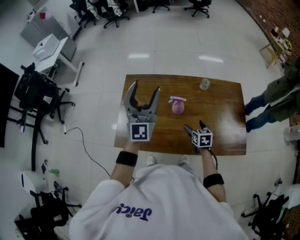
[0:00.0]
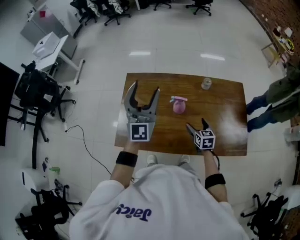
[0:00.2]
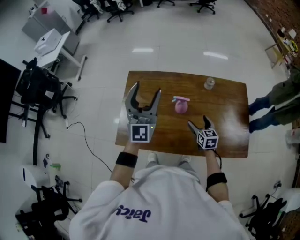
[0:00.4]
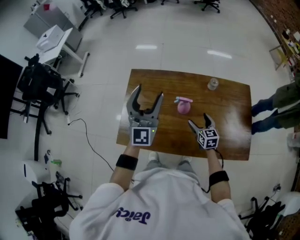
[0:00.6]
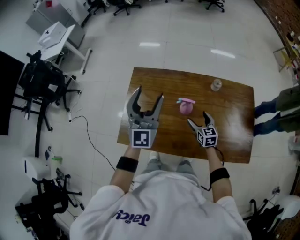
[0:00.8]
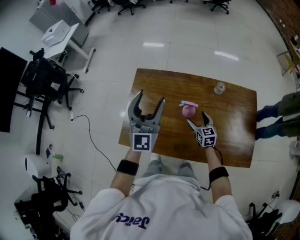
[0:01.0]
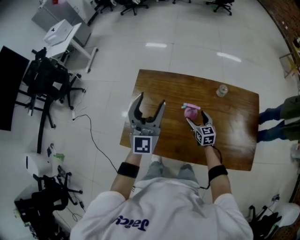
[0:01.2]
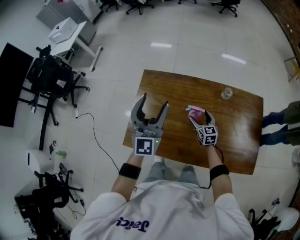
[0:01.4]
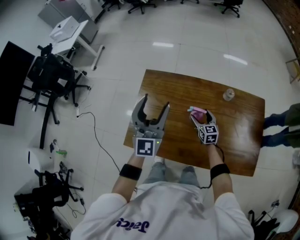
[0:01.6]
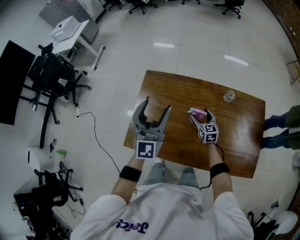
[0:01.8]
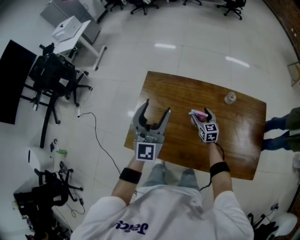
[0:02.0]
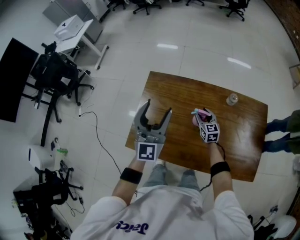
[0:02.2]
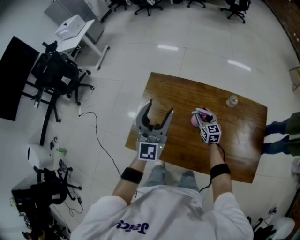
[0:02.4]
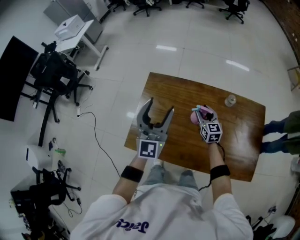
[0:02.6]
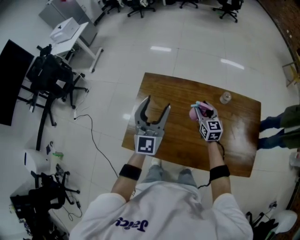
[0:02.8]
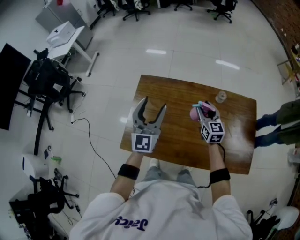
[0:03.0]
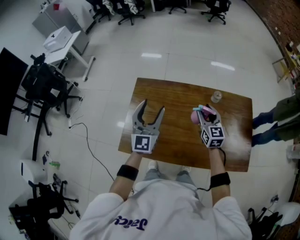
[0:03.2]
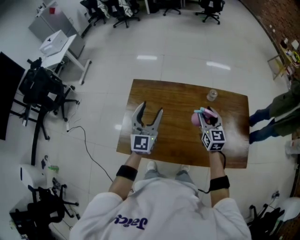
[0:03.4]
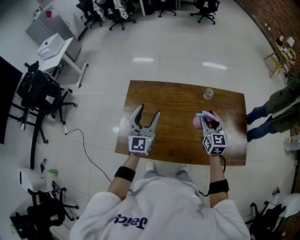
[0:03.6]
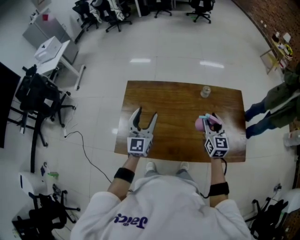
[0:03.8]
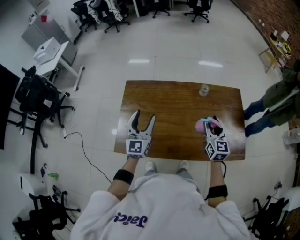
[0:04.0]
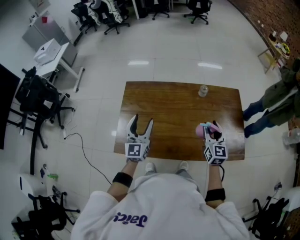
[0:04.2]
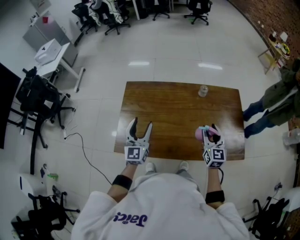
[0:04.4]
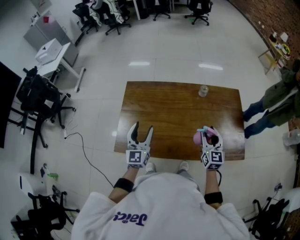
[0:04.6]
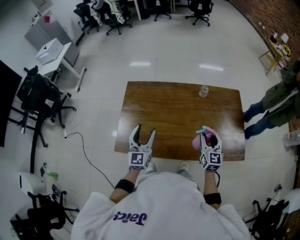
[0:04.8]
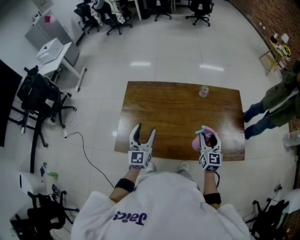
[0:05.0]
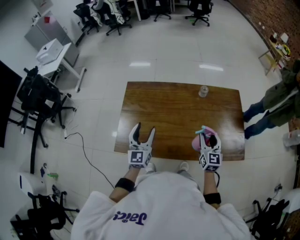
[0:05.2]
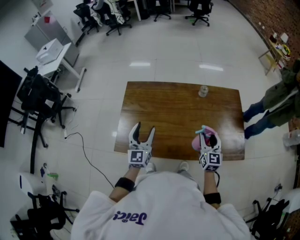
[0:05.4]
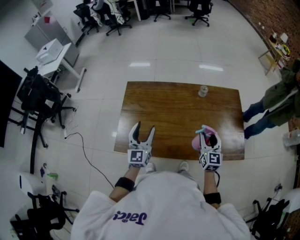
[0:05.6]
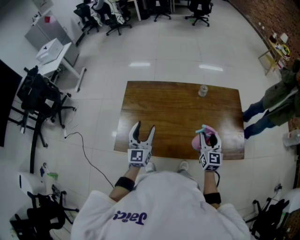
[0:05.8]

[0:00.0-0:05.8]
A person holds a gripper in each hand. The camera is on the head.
0:00.0 to 0:01.4: Both grippers travel together downward, some 20 cm. The right gripper rotates about 20 degrees.
0:01.4 to 0:02.8: The right gripper heads upward, covering some 10 cm, and closes.
0:02.8 to 0:04.4: The left gripper goes about 15 cm backward and downward. The right gripper travels backward and to the right by approximately 25 cm, and swivels about 20 degrees.
0:04.4 to 0:05.8: There are only small adjustments of the grippers.

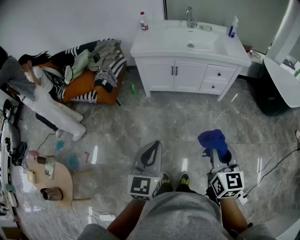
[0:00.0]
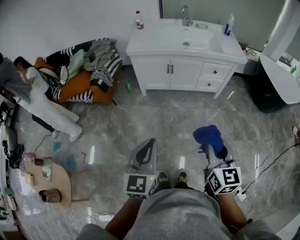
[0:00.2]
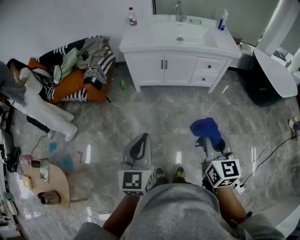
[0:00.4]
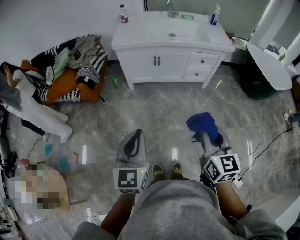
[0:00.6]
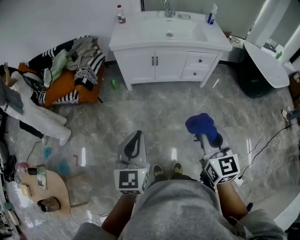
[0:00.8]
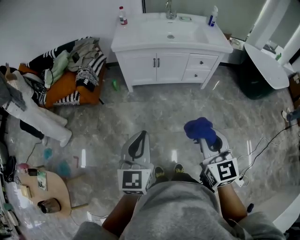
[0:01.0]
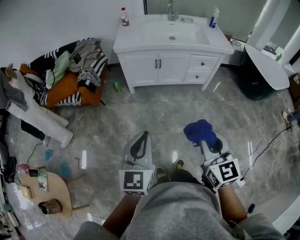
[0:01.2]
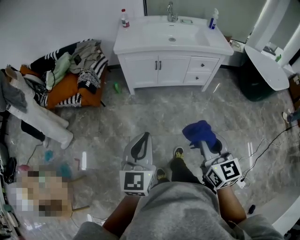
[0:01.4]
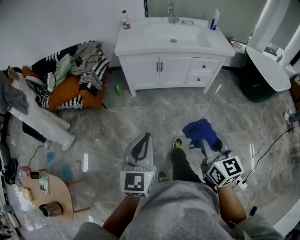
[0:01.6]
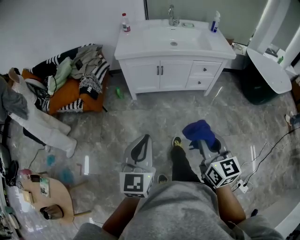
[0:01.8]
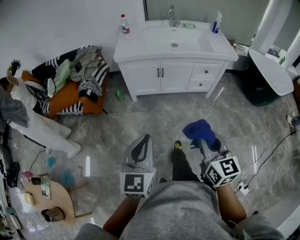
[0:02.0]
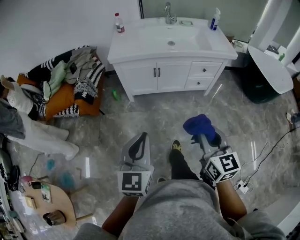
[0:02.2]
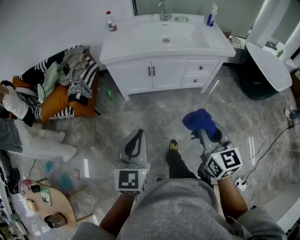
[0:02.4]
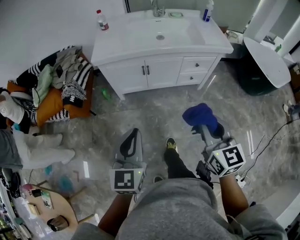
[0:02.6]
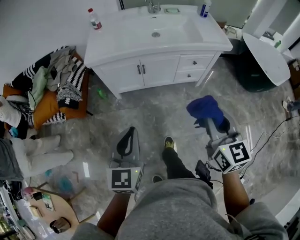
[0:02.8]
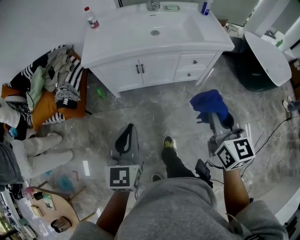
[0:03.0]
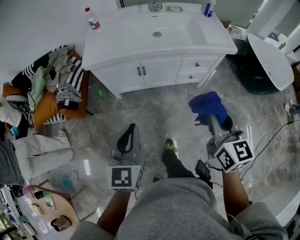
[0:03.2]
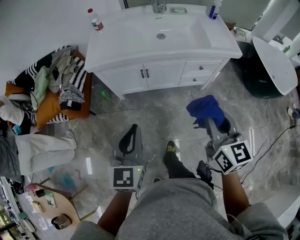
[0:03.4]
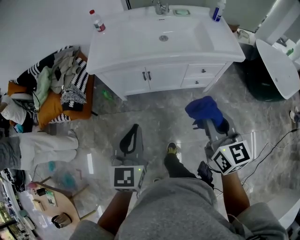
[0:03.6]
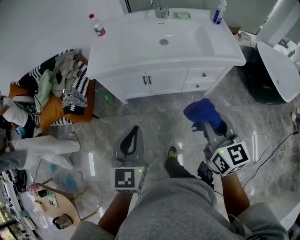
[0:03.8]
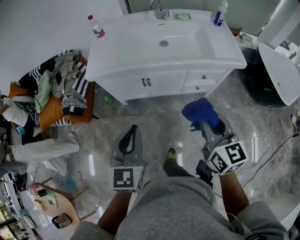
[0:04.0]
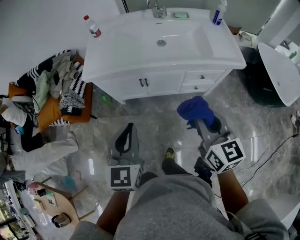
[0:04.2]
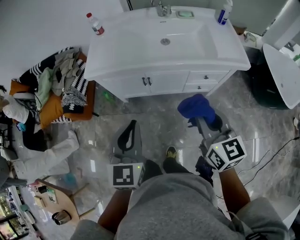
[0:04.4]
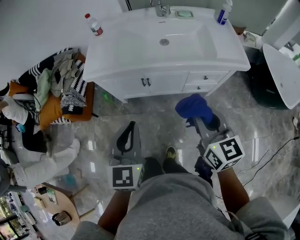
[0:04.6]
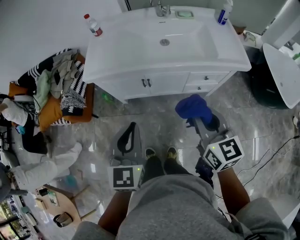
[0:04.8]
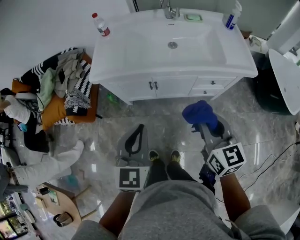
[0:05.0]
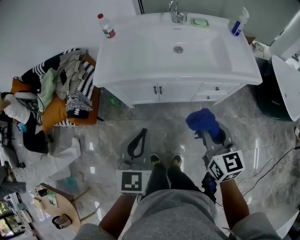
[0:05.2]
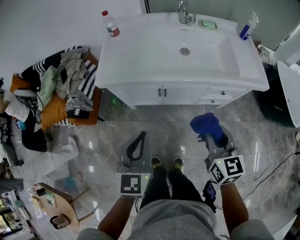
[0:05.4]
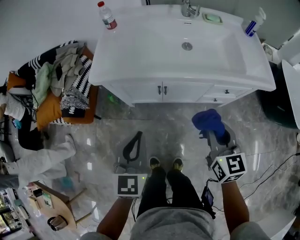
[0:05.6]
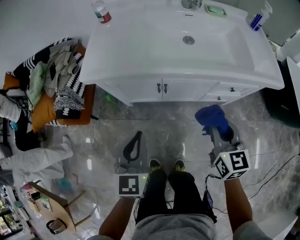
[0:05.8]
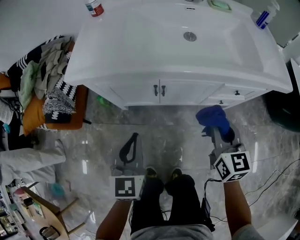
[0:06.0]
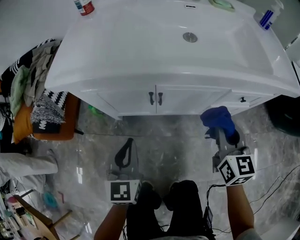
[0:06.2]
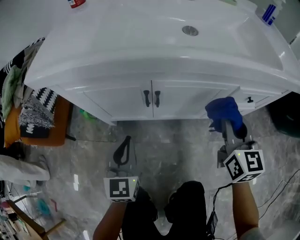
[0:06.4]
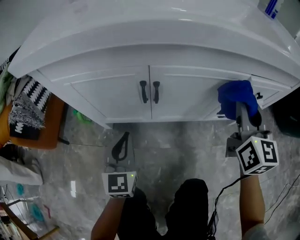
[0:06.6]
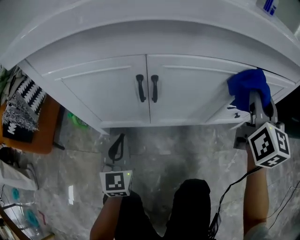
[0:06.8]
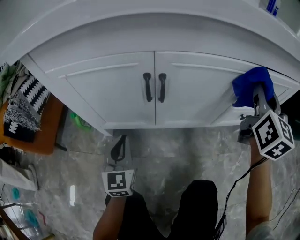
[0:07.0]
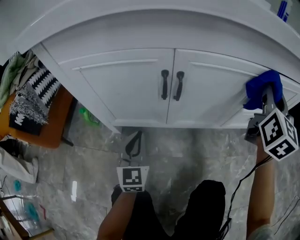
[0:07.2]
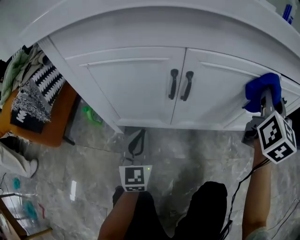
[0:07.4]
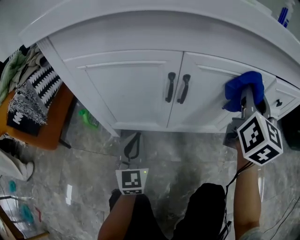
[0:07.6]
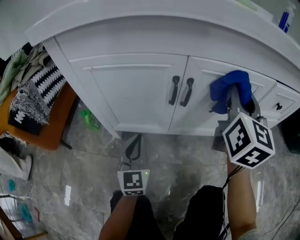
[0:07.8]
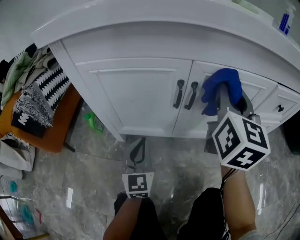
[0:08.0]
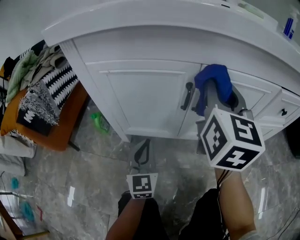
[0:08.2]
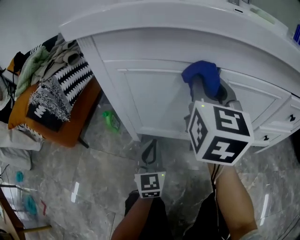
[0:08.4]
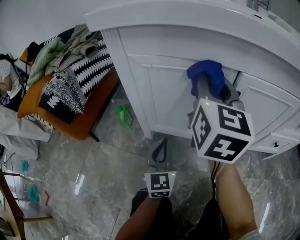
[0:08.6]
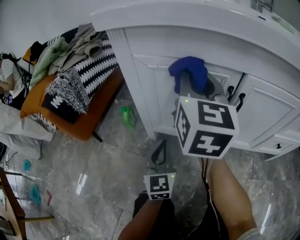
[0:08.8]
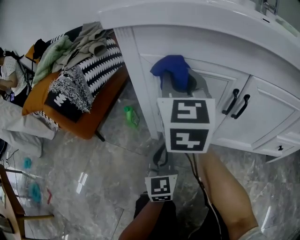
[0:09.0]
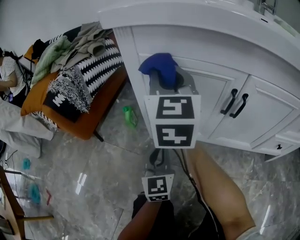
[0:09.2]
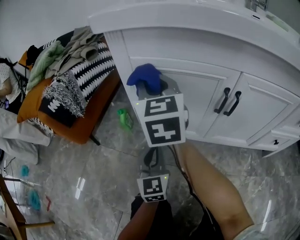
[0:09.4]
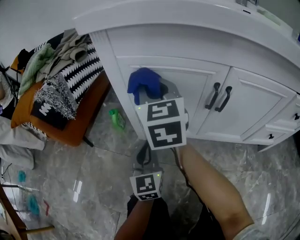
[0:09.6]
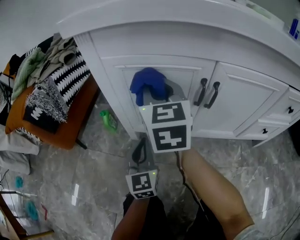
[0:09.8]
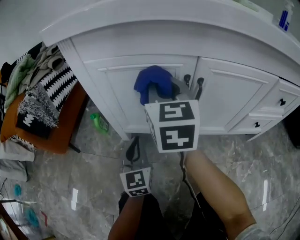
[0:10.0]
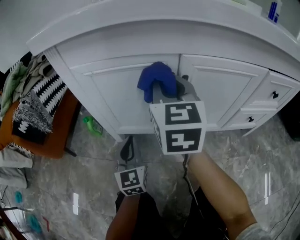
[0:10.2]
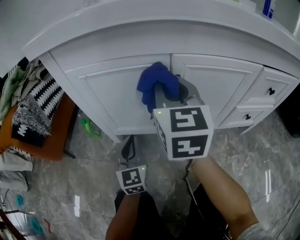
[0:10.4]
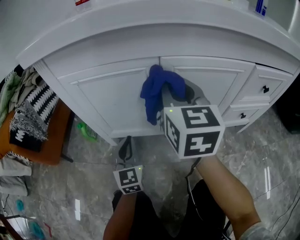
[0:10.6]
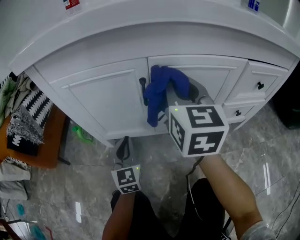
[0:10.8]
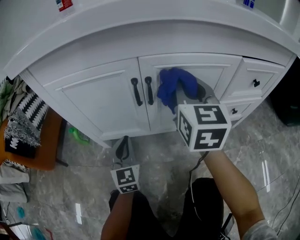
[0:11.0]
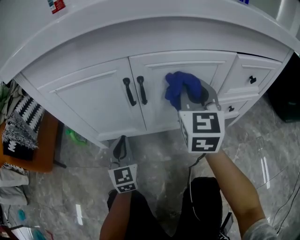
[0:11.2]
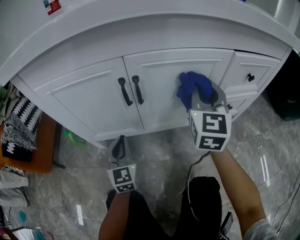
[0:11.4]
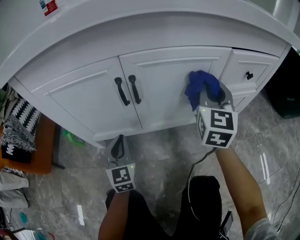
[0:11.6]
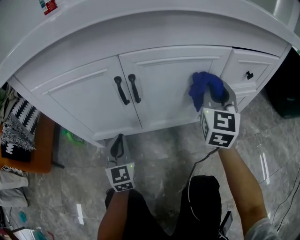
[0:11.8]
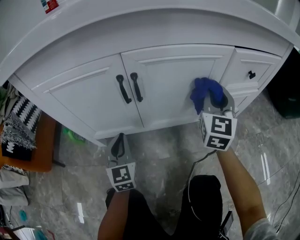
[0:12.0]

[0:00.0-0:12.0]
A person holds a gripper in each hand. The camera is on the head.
0:00.0 to 0:01.6: The right gripper is displaced to the left by roughly 5 cm.
0:01.6 to 0:03.0: The right gripper goes approximately 30 cm forward and to the right; the left gripper is displaced forward by roughly 25 cm.
0:03.0 to 0:04.4: The right gripper heads forward, covering some 15 cm. Meanwhile the left gripper moves forward and to the right, about 15 cm.
0:04.4 to 0:06.0: The two grippers go roughly 30 cm downward and forward.
0:06.0 to 0:07.6: The left gripper goes approximately 35 cm downward, while the right gripper moves forward and downward, roughly 20 cm, and turns by approximately 30 degrees.
0:07.6 to 0:09.0: The left gripper shifts roughly 10 cm to the left. The right gripper shifts some 40 cm to the left, and rotates some 30 degrees.
0:09.0 to 0:10.4: The right gripper is displaced to the right by approximately 15 cm. The left gripper moves to the right, roughly 5 cm.
0:10.4 to 0:12.0: The right gripper heads to the right, covering about 25 cm, and turns by about 30 degrees. The left gripper shifts some 5 cm to the right.

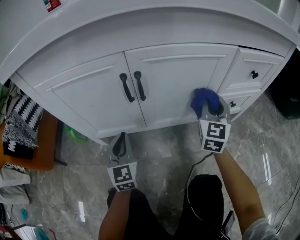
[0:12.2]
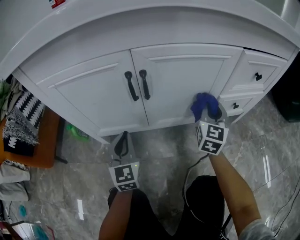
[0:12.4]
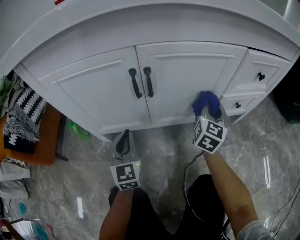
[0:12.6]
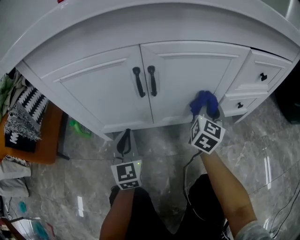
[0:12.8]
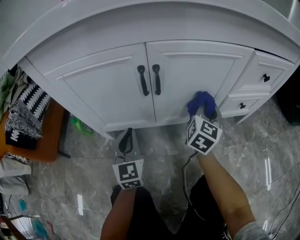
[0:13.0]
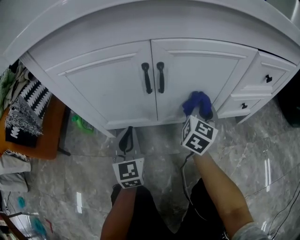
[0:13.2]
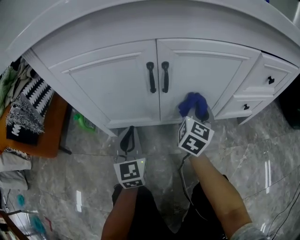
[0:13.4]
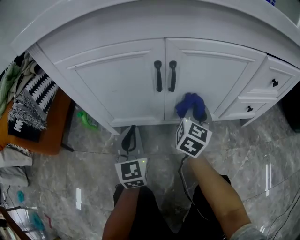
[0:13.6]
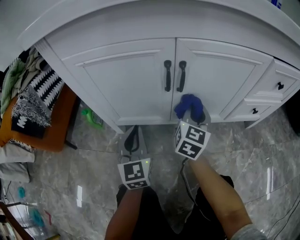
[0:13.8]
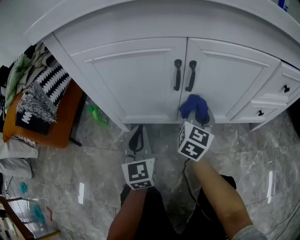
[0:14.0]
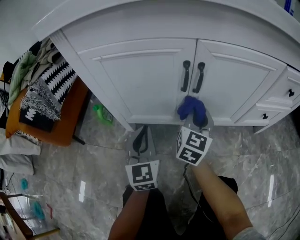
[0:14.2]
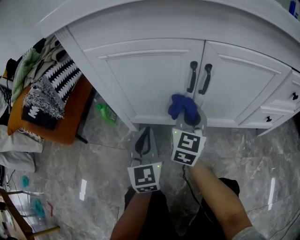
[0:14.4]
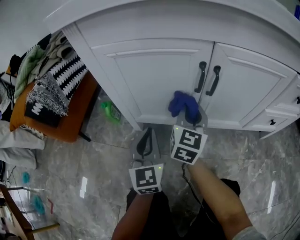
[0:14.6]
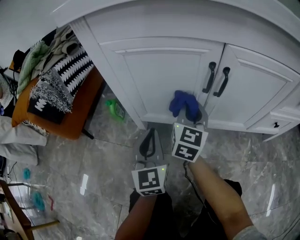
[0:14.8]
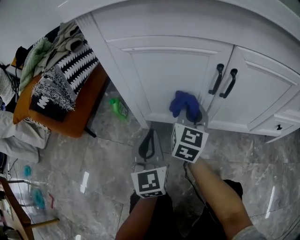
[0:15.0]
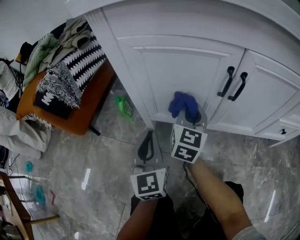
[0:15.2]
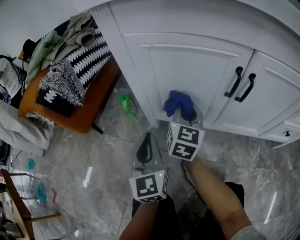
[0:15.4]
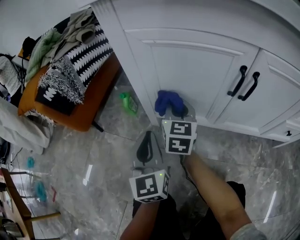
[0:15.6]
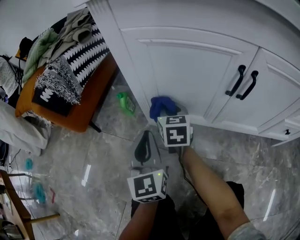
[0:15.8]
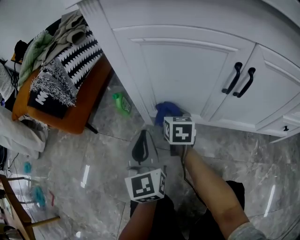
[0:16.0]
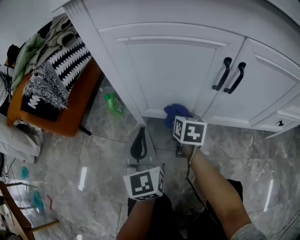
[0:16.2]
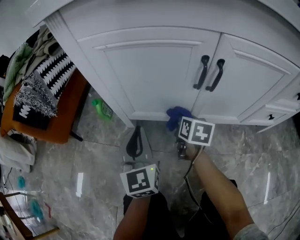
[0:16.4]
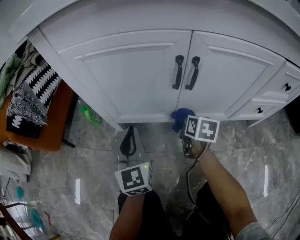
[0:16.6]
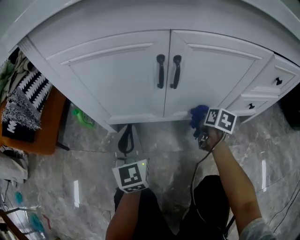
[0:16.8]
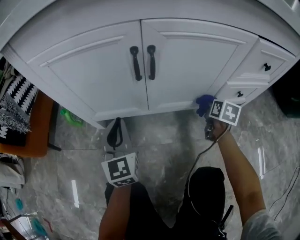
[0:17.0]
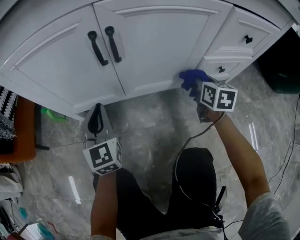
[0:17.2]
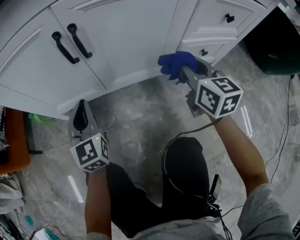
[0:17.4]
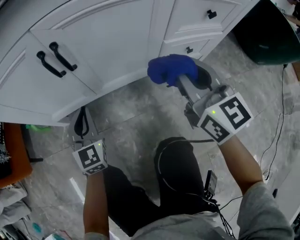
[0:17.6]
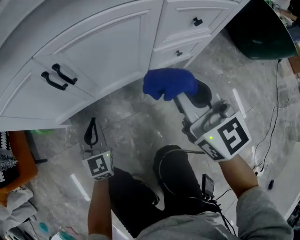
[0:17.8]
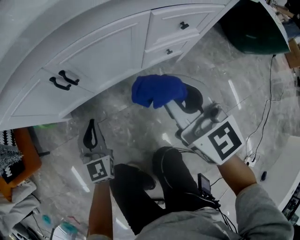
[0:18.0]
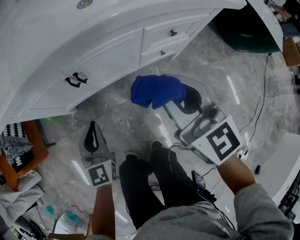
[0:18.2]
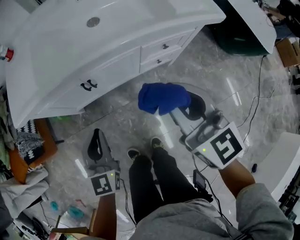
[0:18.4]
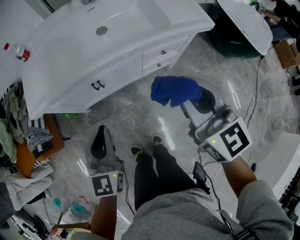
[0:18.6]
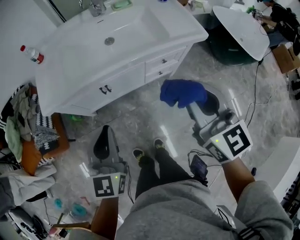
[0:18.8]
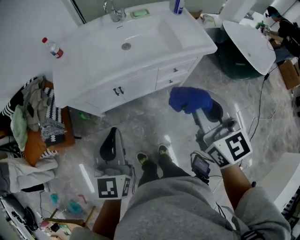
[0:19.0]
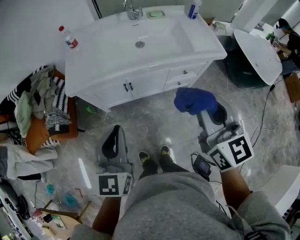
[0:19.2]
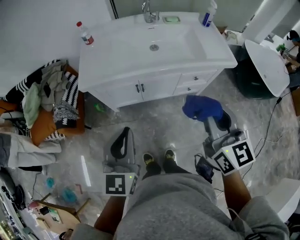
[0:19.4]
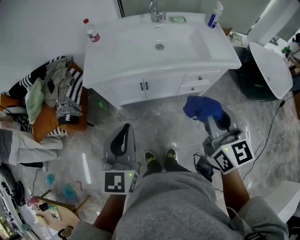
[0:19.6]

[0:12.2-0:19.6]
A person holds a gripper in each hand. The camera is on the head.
0:12.2 to 0:13.6: The right gripper travels to the left by some 15 cm, and turns by about 20 degrees.
0:13.6 to 0:15.2: The right gripper goes some 25 cm to the left, and changes its angle by about 20 degrees. The left gripper heads to the left, covering roughly 10 cm.
0:15.2 to 0:16.6: The right gripper moves to the right and downward, about 20 cm, and tilts its fingers roughly 30 degrees downward; the left gripper travels to the right by roughly 5 cm.
0:16.6 to 0:18.2: The right gripper goes some 50 cm upward, and tips its fingers upward by some 30 degrees, while the left gripper is displaced upward, to the right and backward by approximately 30 cm, and turns by about 30 degrees.
0:18.2 to 0:19.6: The left gripper is displaced upward by some 40 cm. Meanwhile the right gripper travels upward and backward by about 35 cm.
